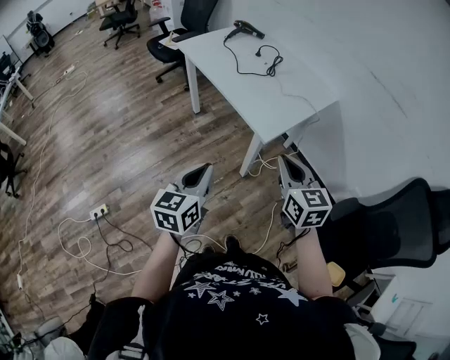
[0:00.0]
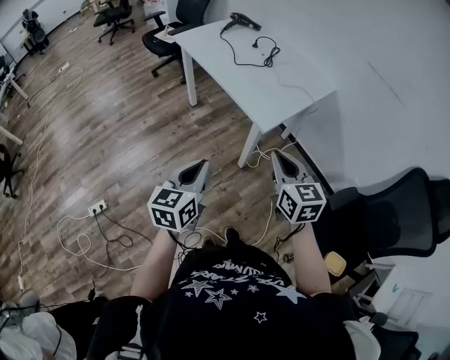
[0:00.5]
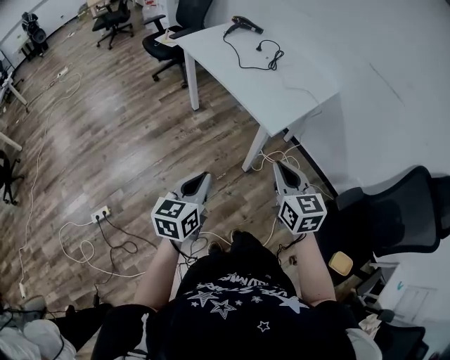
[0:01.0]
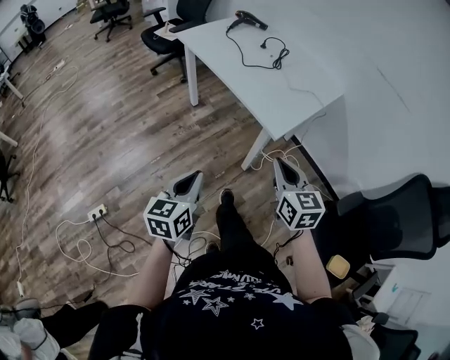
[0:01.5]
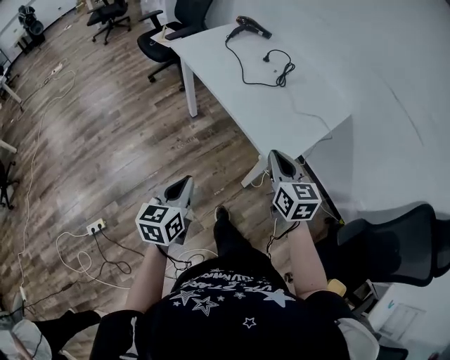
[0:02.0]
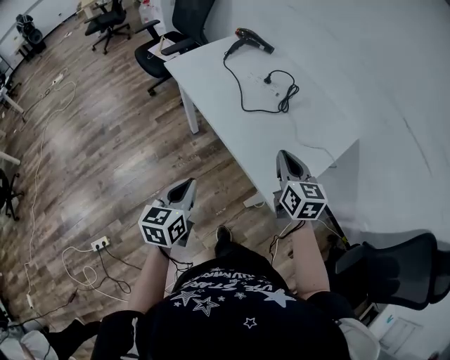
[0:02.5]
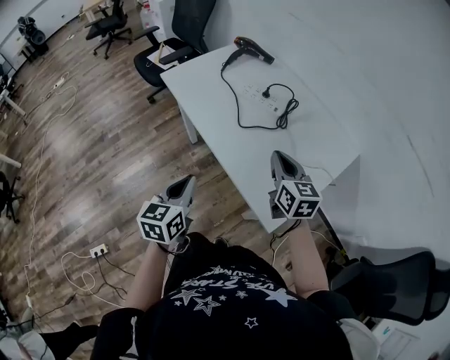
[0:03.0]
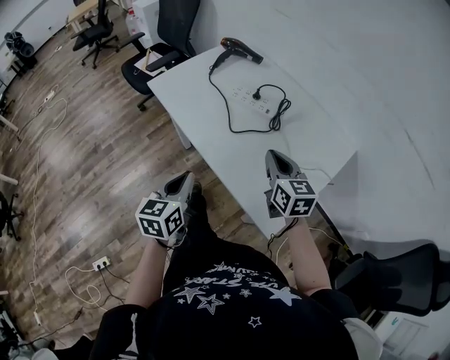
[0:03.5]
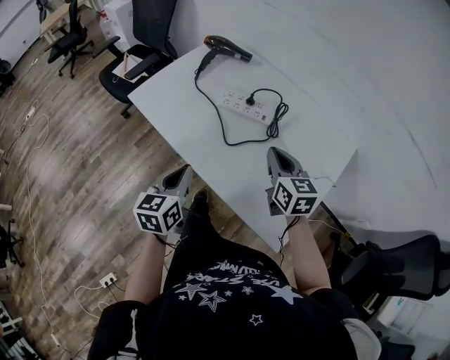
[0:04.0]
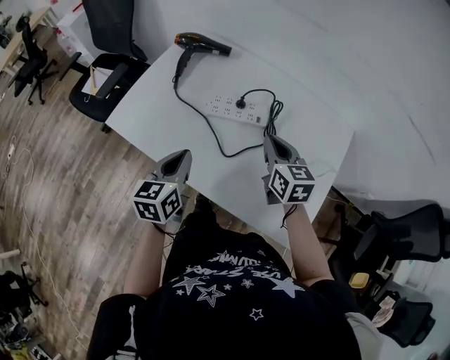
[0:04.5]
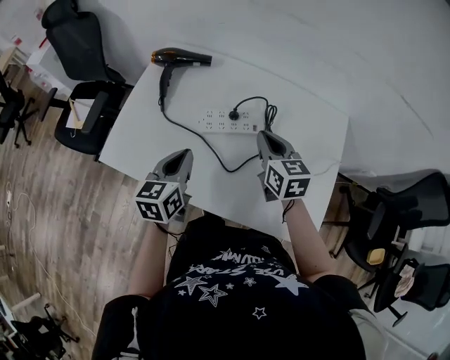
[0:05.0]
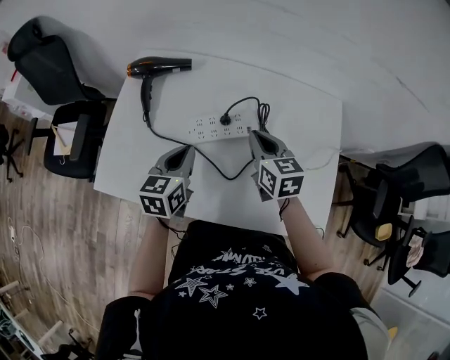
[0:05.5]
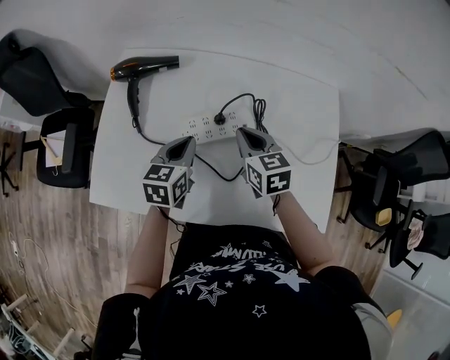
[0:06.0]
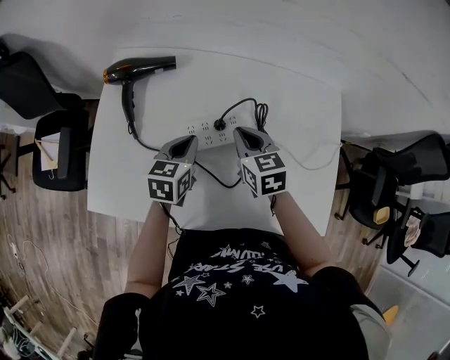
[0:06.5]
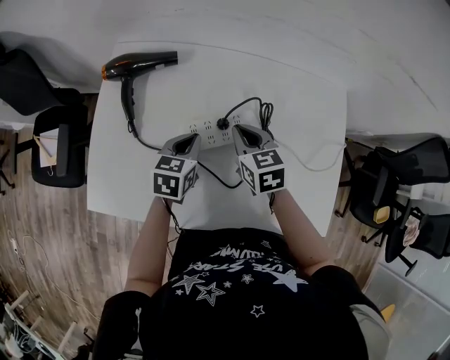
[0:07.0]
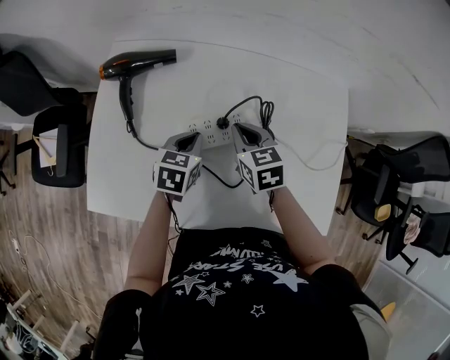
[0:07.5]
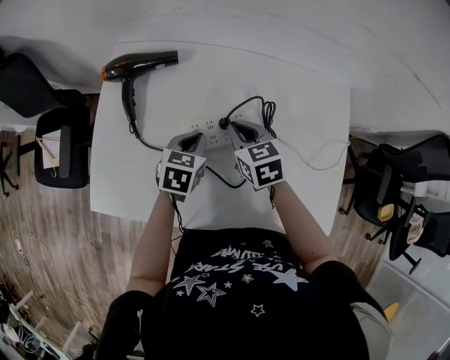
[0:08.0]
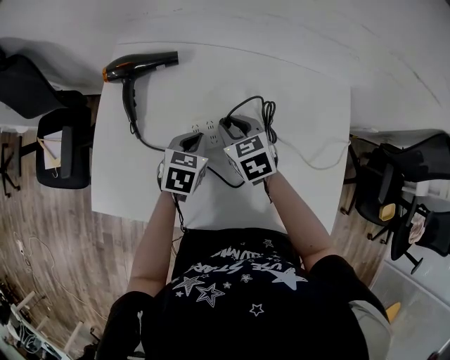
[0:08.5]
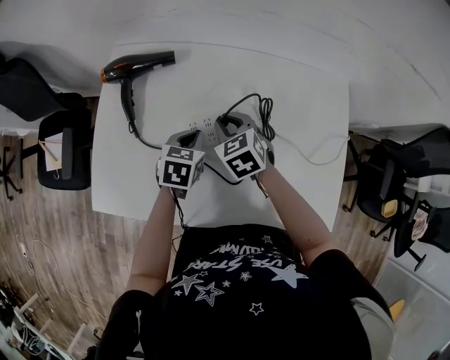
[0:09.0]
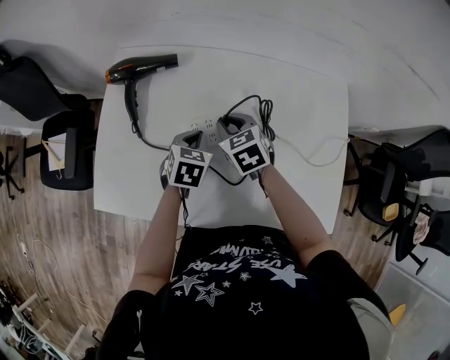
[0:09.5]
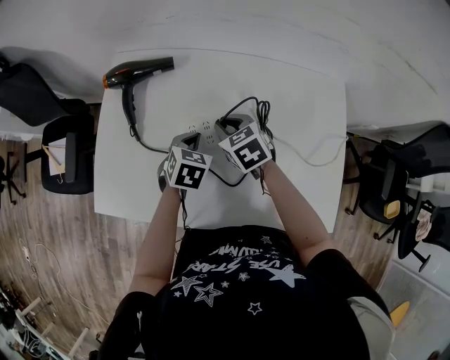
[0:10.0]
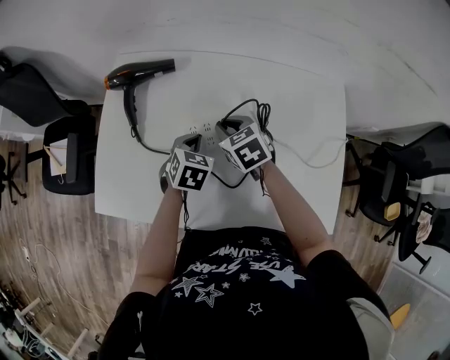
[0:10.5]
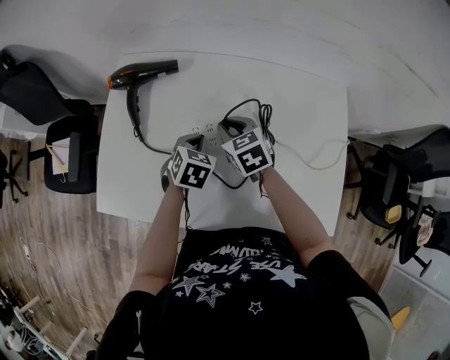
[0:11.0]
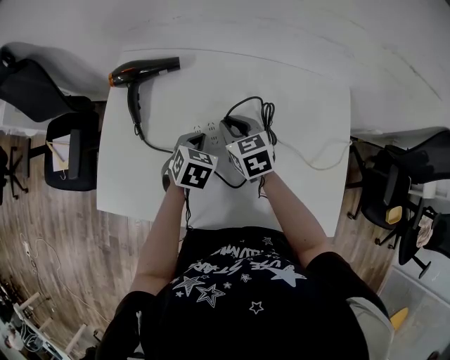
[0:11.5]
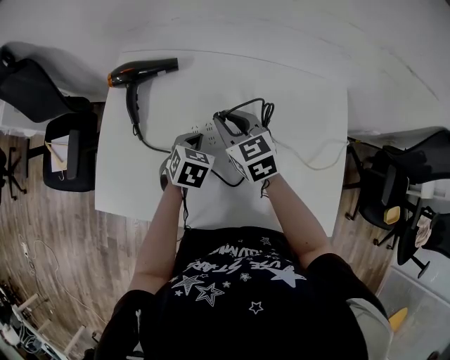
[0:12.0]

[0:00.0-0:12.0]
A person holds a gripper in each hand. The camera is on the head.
0:00.0 to 0:02.0: The right gripper is displaced forward by roughly 20 cm. Meanwhile the left gripper shifts about 20 cm forward, to the left and downward.
0:02.0 to 0:04.0: The two grippers go approximately 35 cm forward.
0:04.0 to 0:06.0: The right gripper shifts by some 20 cm, and changes its angle by some 30 degrees. Meanwhile the left gripper ends up about 30 cm from where it was, and swivels some 40 degrees.
0:06.0 to 0:08.0: The left gripper moves downward, some 5 cm. The right gripper shifts by roughly 5 cm.
0:08.0 to 0:10.0: There are only small adjustments of the grippers.
0:10.0 to 0:12.0: The right gripper shifts about 5 cm upward.

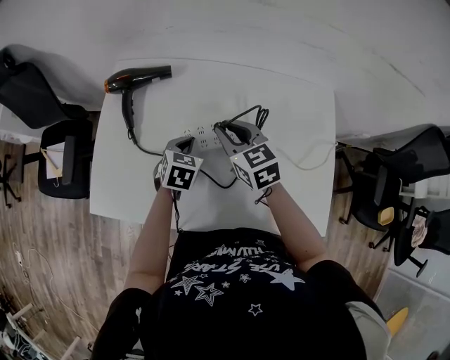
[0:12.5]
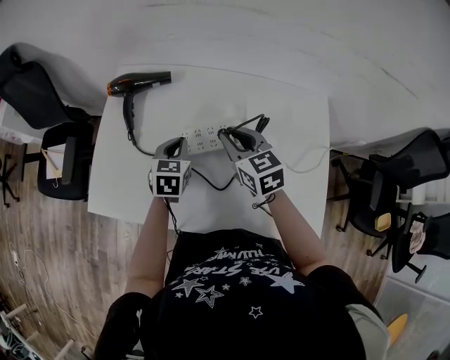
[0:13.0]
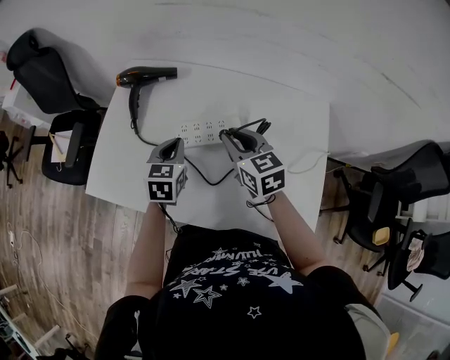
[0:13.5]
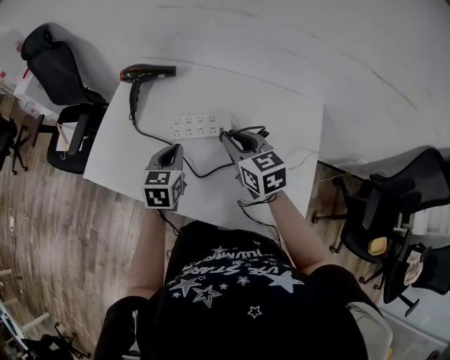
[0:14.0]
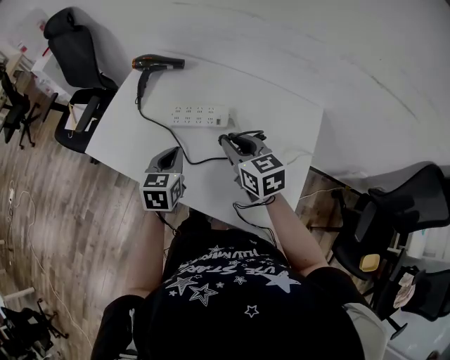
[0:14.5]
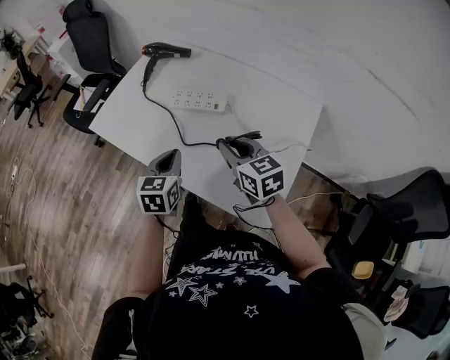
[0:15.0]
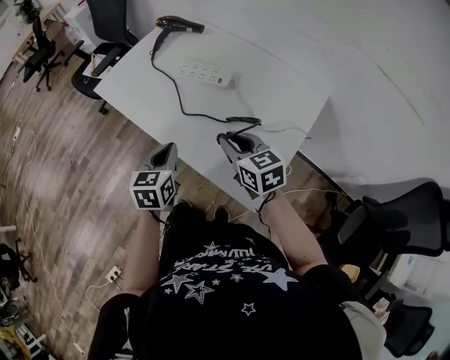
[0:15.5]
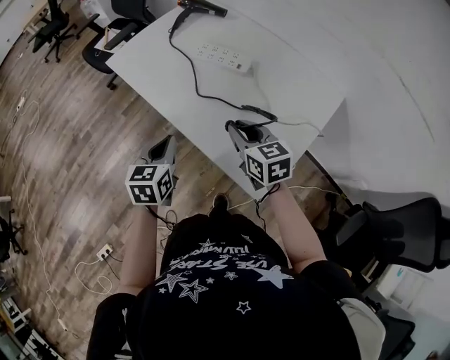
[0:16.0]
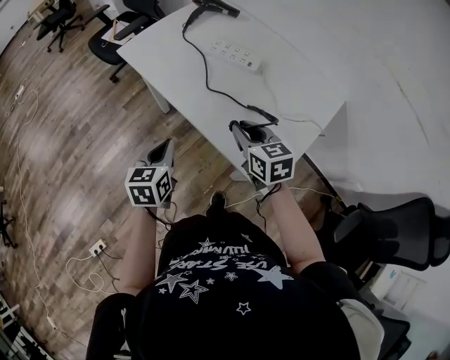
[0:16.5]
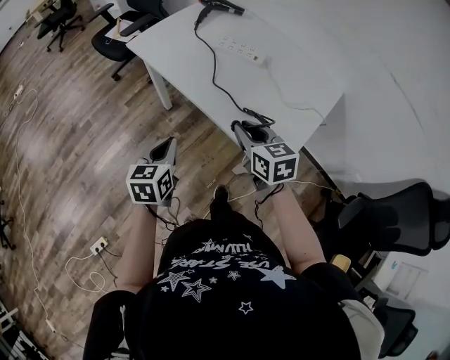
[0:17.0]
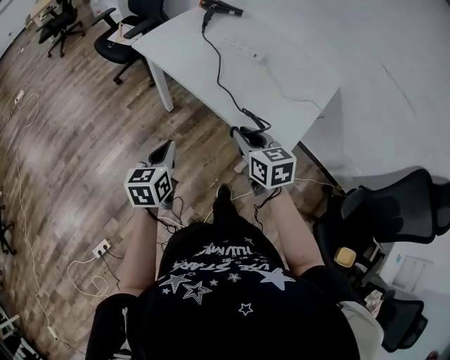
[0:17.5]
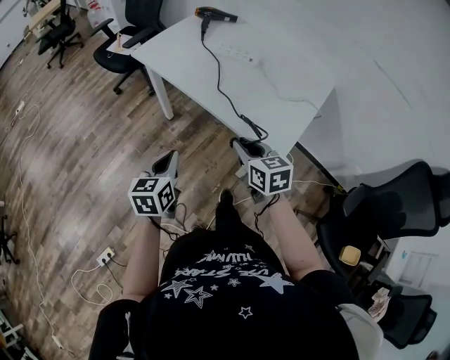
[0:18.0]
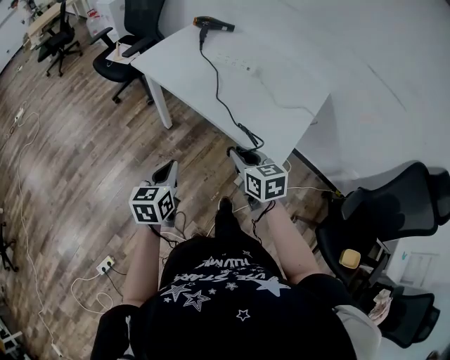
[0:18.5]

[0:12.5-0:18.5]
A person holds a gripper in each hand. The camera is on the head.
0:12.5 to 0:14.5: The right gripper heads backward and to the right, covering some 15 cm. Meanwhile the left gripper is displaced backward and upward by about 20 cm, and swivels roughly 30 degrees.
0:14.5 to 0:16.5: The right gripper travels backward by roughly 15 cm. The left gripper shifts some 25 cm backward and to the left, and swivels about 20 degrees.
0:16.5 to 0:18.5: The grippers both shift backward and to the left by some 15 cm.

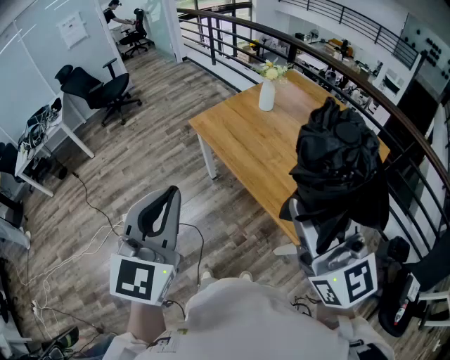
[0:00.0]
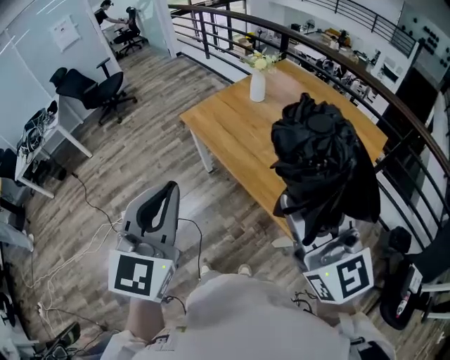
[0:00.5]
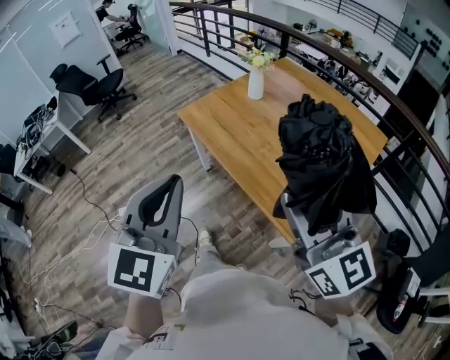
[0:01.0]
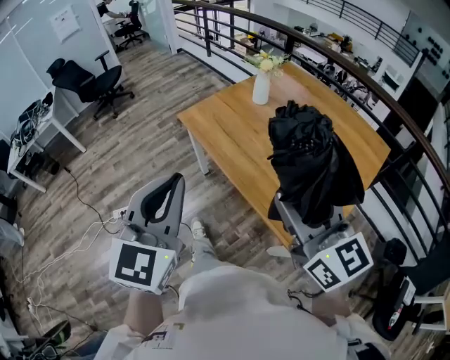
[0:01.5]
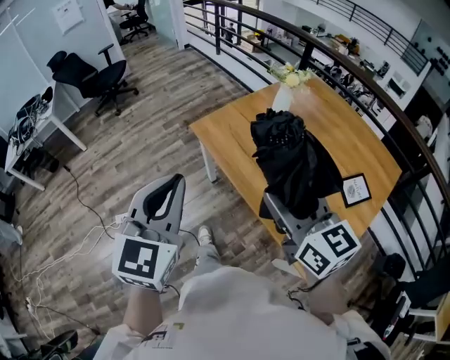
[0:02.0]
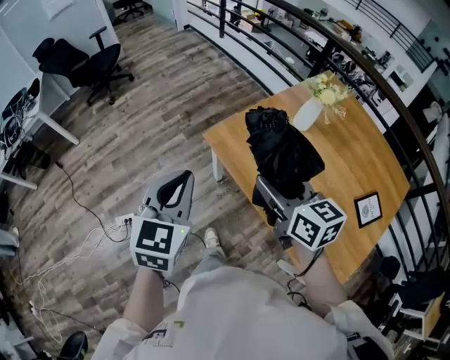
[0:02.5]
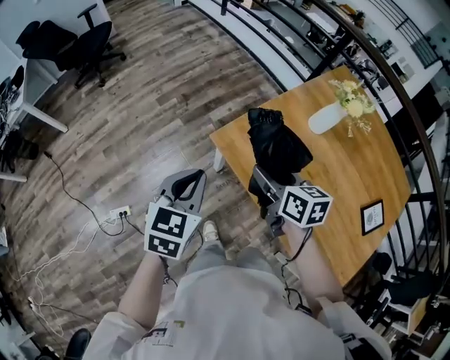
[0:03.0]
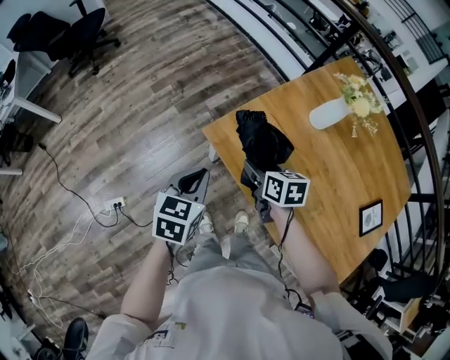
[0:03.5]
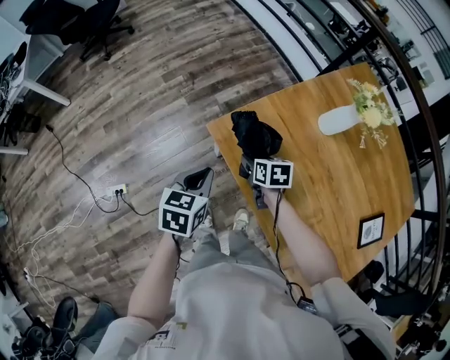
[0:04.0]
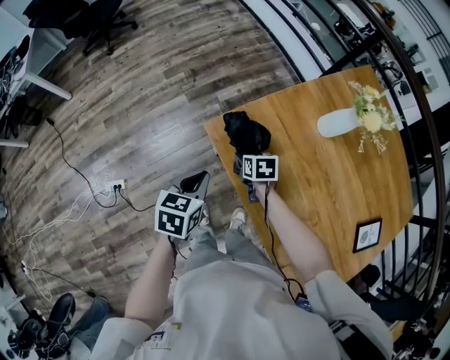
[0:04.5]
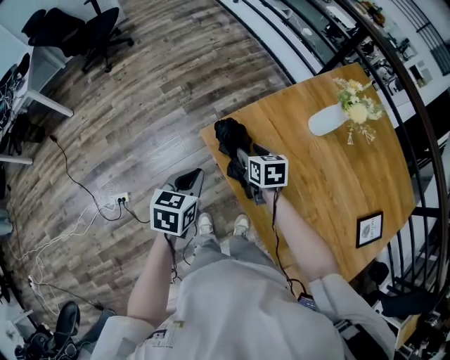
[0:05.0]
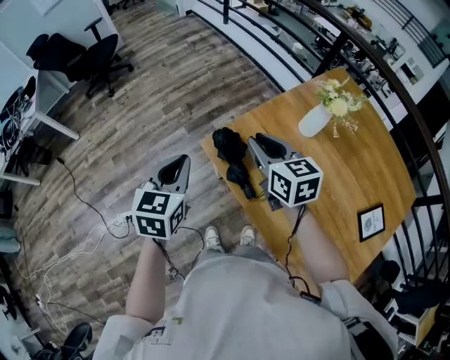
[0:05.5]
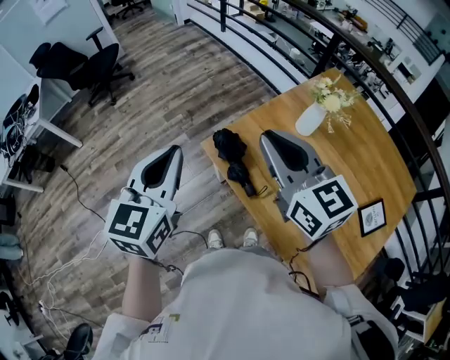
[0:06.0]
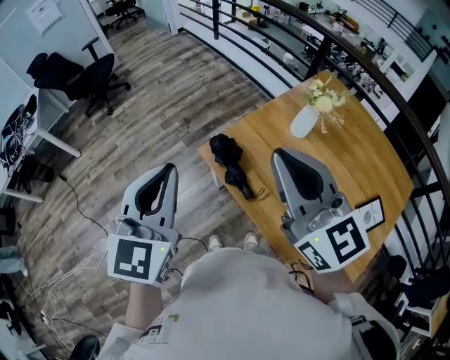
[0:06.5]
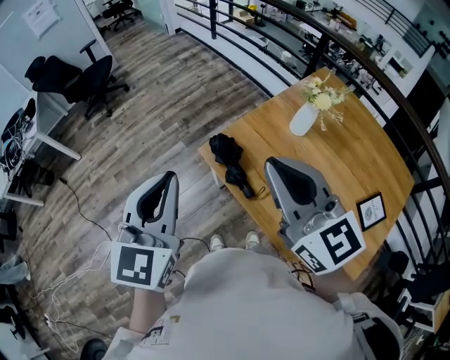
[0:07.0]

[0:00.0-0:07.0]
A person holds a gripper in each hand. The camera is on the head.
0:00.0 to 0:02.0: The right gripper is displaced forward and downward by about 30 cm, and changes its angle by some 30 degrees, while the left gripper shifts about 25 cm forward.
0:02.0 to 0:03.5: Both grippers travel together forward and downward, roughly 50 cm. The right gripper angles its fingers downward, by some 40 degrees, while the left gripper rotates about 40 degrees.
0:03.5 to 0:05.0: The right gripper goes approximately 5 cm forward, and travels downward and back again, approximately 15 cm each way.
0:05.0 to 0:07.0: The right gripper moves upward and backward, some 50 cm, angles its fingers upward, by about 40 degrees, and closes its fingers. The left gripper travels upward by approximately 30 cm, and tilts its fingers about 30 degrees upward.

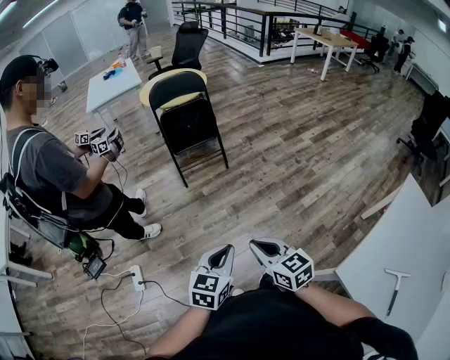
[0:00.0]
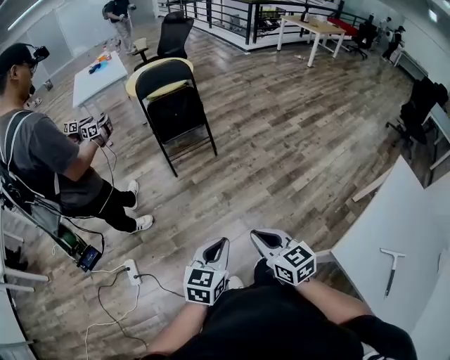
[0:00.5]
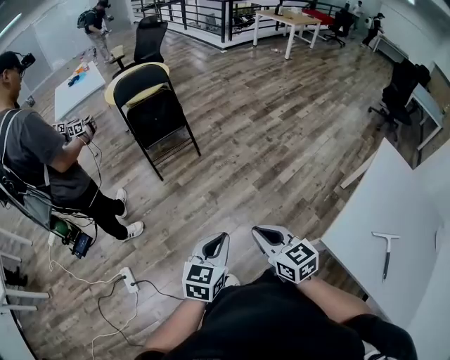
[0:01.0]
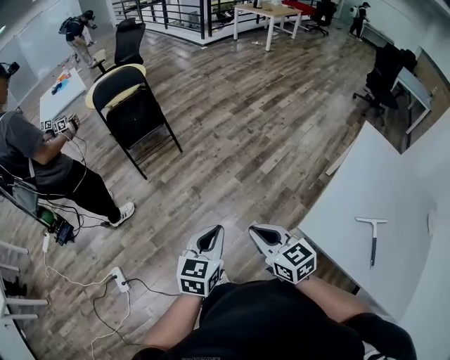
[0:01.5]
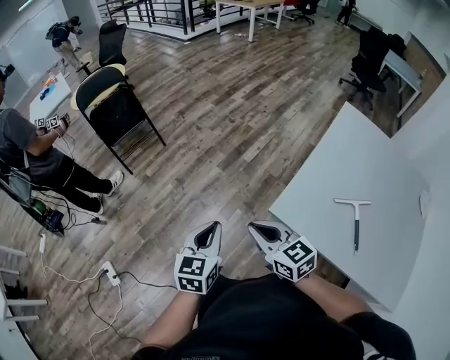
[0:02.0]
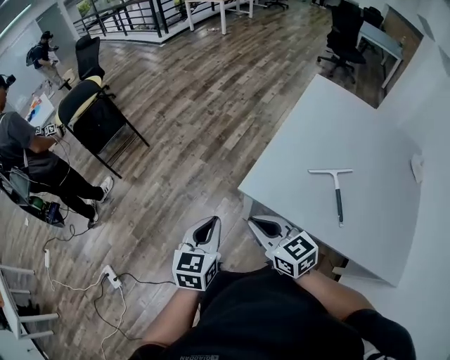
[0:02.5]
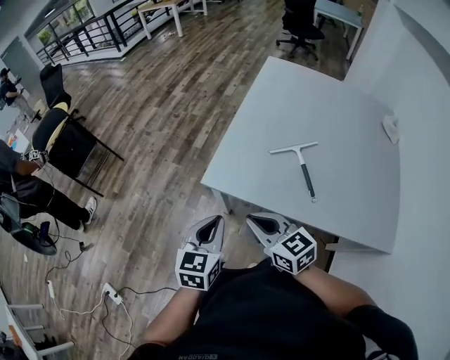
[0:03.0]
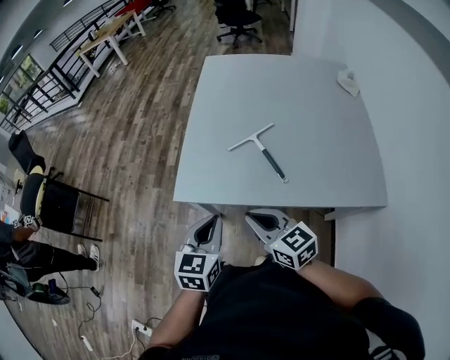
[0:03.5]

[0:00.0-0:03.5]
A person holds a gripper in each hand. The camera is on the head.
0:00.0 to 0:02.0: Both grippers travel together to the right and backward, roughly 30 cm.
0:02.0 to 0:03.5: The left gripper ends up some 35 cm from where it was, and swivels some 30 degrees. Meanwhile the right gripper shifts by roughly 35 cm, and swivels approximately 30 degrees.
